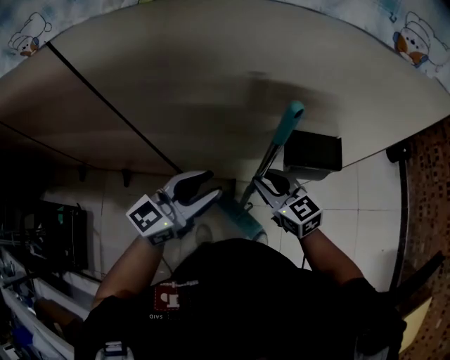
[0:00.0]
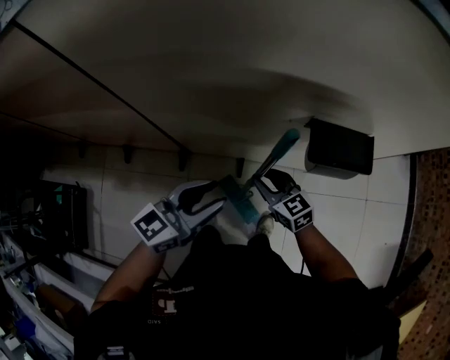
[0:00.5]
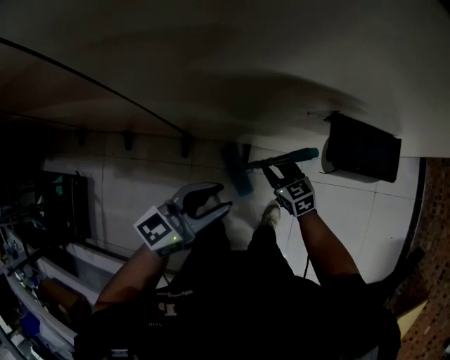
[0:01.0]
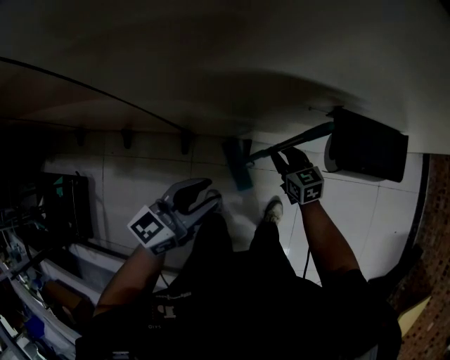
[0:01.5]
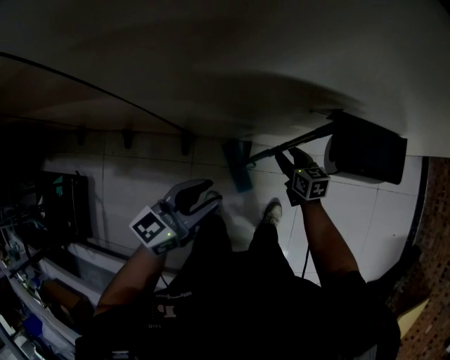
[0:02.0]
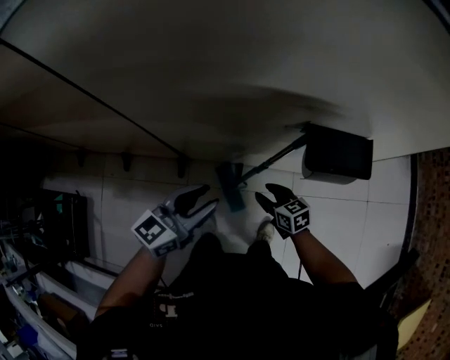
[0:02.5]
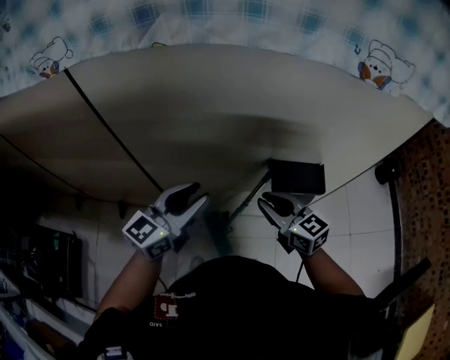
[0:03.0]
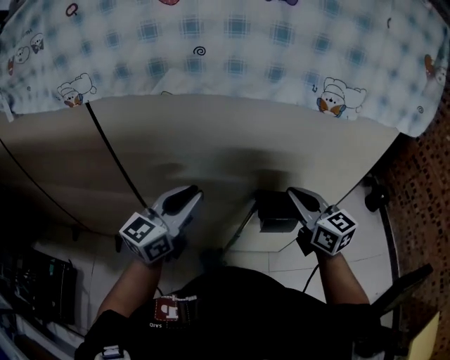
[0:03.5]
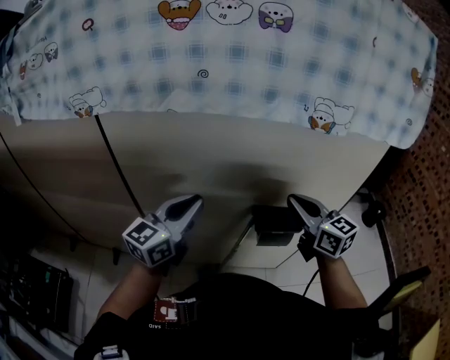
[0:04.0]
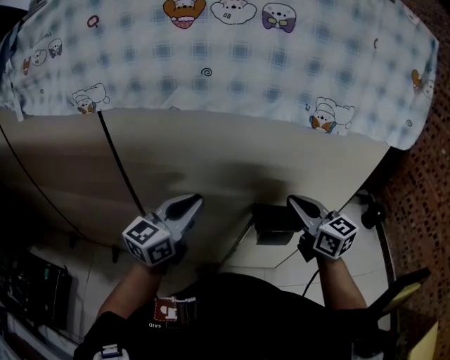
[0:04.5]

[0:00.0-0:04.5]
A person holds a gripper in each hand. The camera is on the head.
0:00.0 to 0:02.0: The left gripper goes about 20 cm downward, while the right gripper goes roughly 30 cm downward, turns by some 30 degrees, and opens.
0:02.0 to 0:04.5: The left gripper travels upward by roughly 35 cm, rotates roughly 30 degrees, and closes up; the right gripper moves upward, approximately 50 cm, angles its fingers upward, by roughly 30 degrees, and closes its fingers.

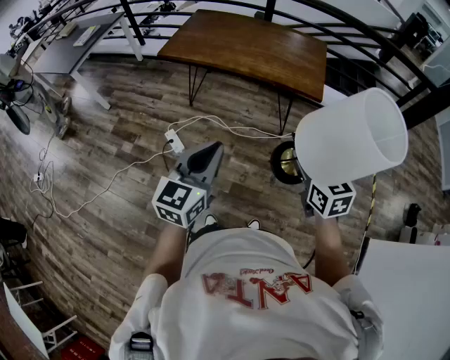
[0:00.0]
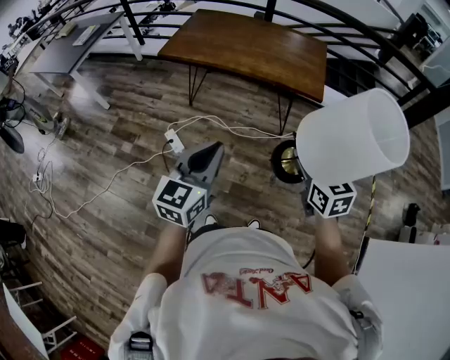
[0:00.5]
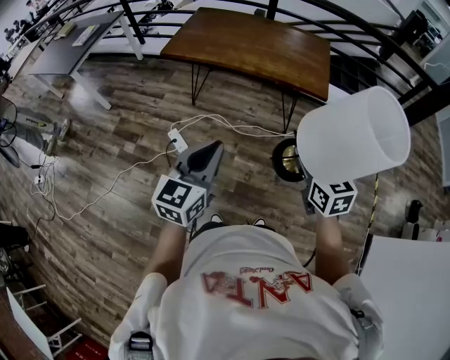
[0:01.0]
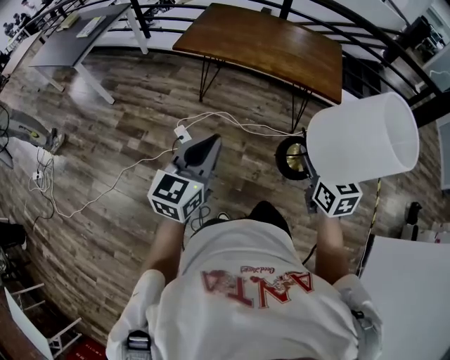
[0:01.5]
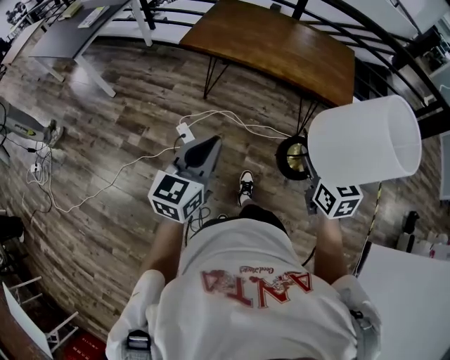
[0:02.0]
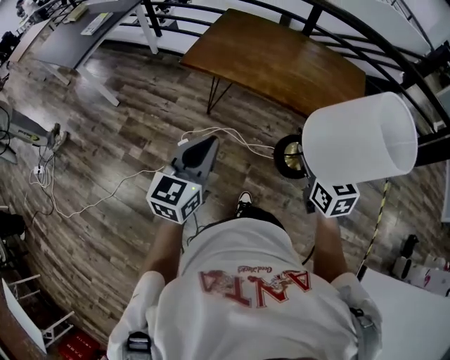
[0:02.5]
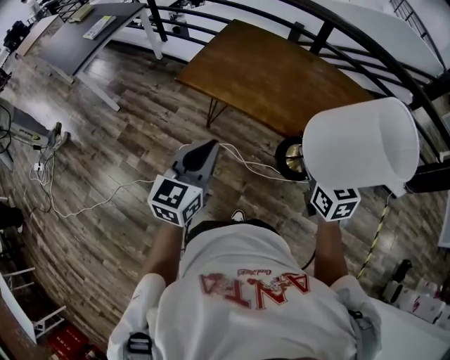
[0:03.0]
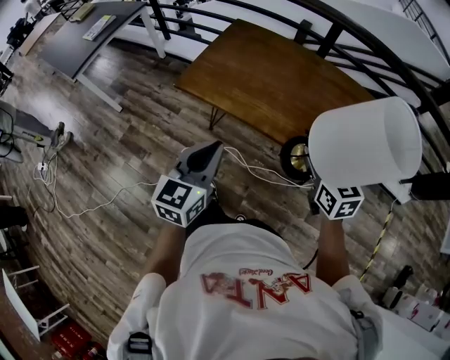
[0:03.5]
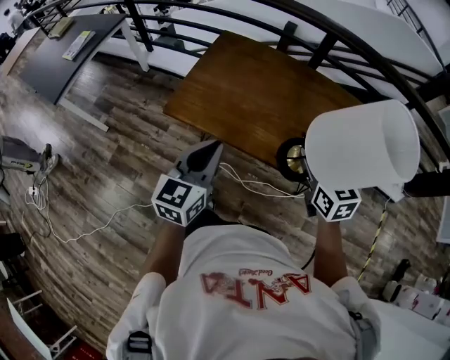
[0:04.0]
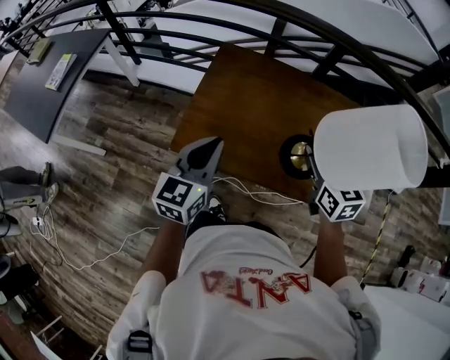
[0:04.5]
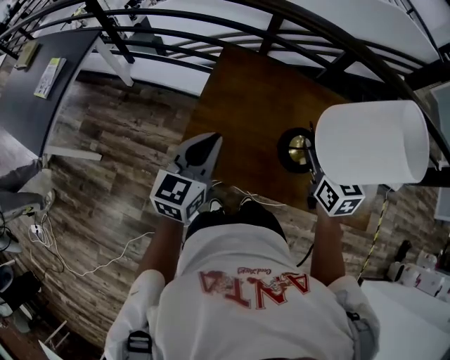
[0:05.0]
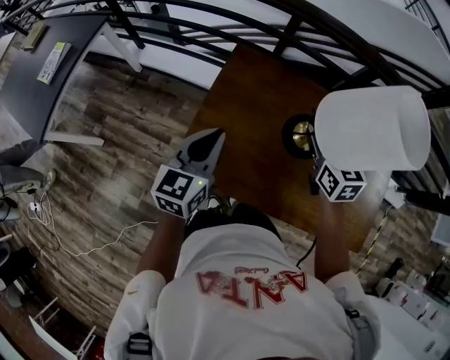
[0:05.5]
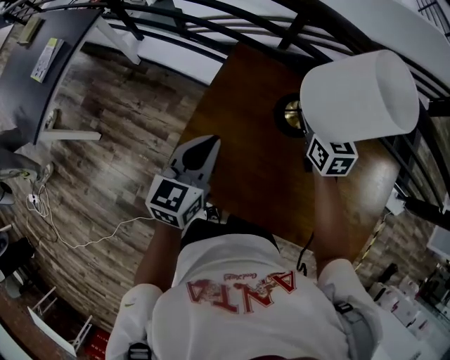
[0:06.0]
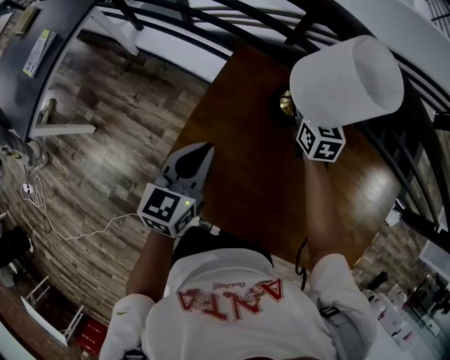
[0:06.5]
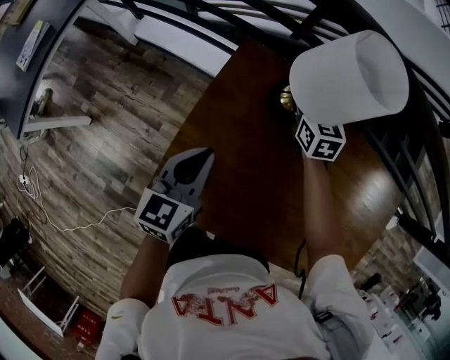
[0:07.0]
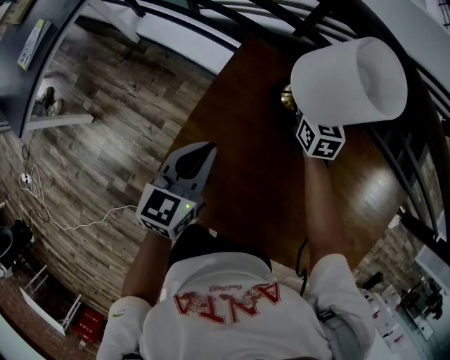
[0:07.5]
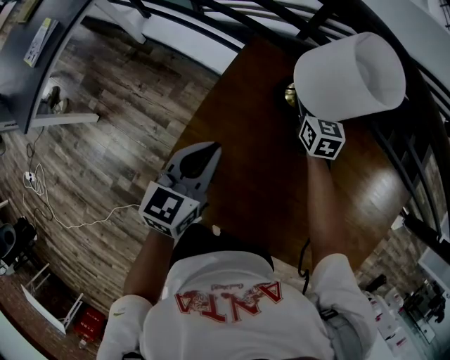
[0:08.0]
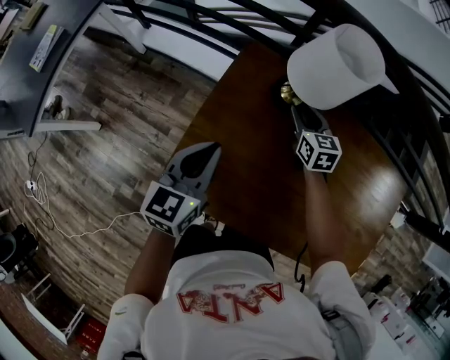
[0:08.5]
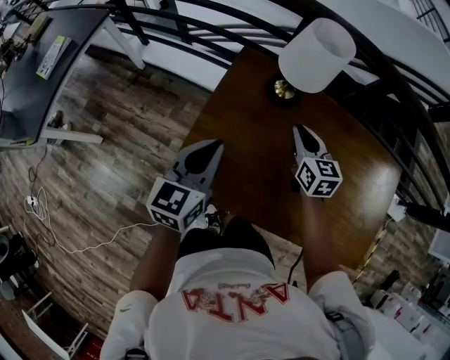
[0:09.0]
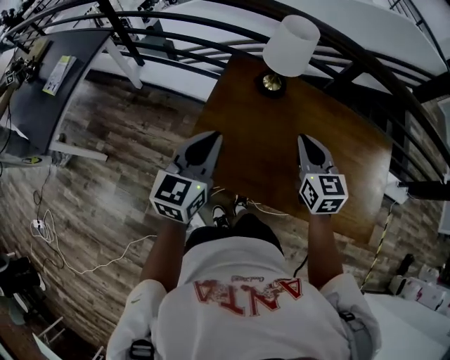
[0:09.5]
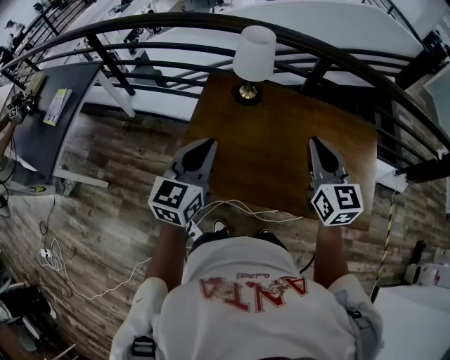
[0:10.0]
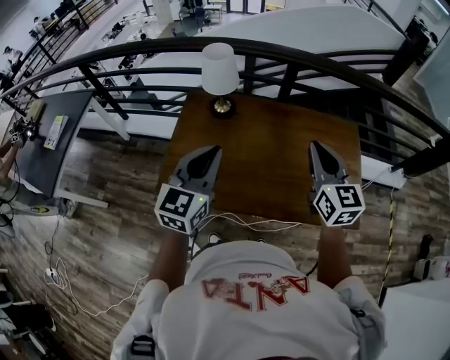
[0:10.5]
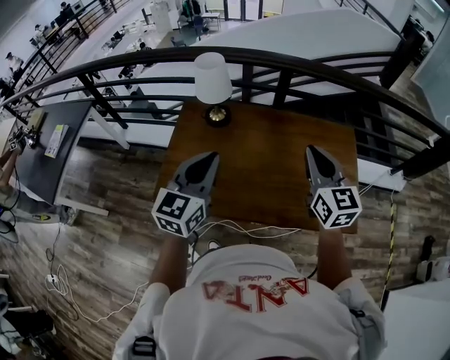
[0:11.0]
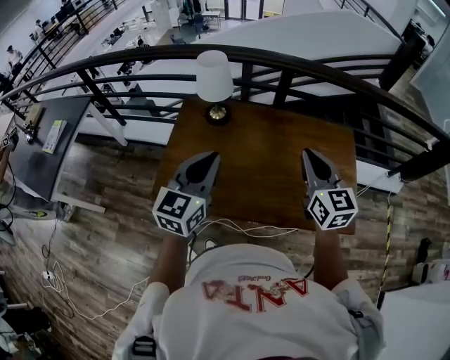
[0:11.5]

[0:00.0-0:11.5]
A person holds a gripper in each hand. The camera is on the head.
0:00.0 to 0:02.0: Both grippers move to the left and forward, about 15 cm.
0:02.0 to 0:04.0: Both grippers are carried forward, approximately 40 cm.
0:04.0 to 0:06.0: Both grippers travel together forward, about 40 cm.
0:06.0 to 0:07.5: The left gripper shifts about 10 cm downward; the right gripper is displaced downward and forward by approximately 15 cm.
0:07.5 to 0:09.5: The right gripper goes approximately 35 cm backward and upward. The left gripper travels backward and upward by about 20 cm.
0:09.5 to 0:11.5: The two grippers go roughly 25 cm to the right and upward.

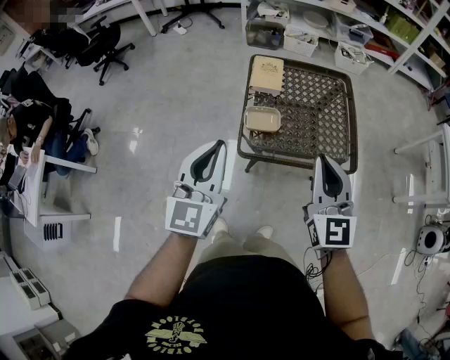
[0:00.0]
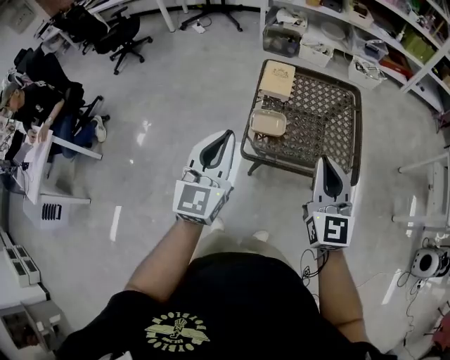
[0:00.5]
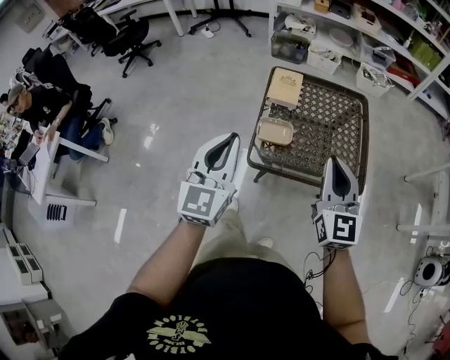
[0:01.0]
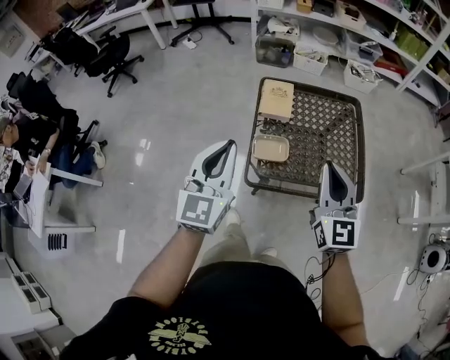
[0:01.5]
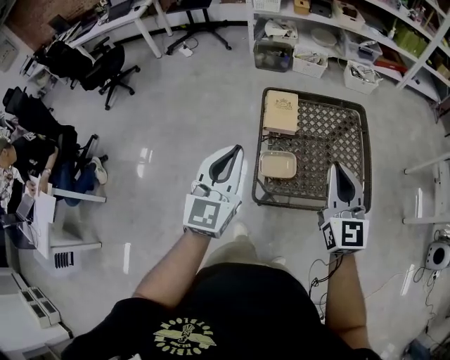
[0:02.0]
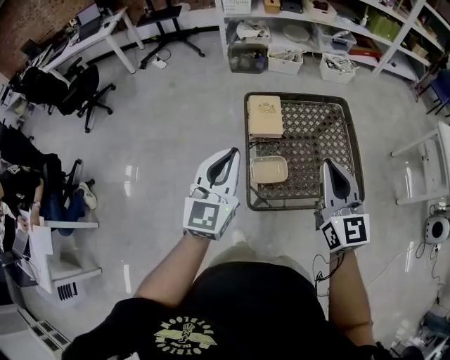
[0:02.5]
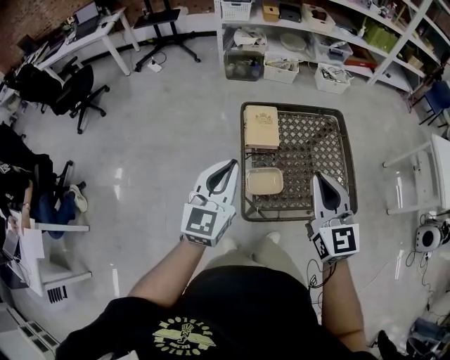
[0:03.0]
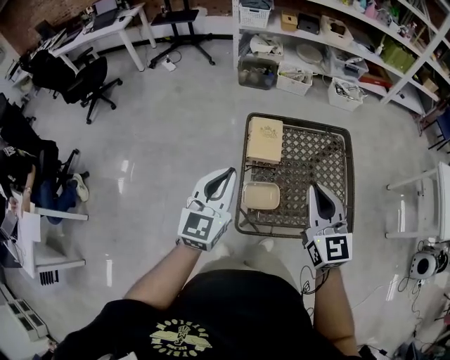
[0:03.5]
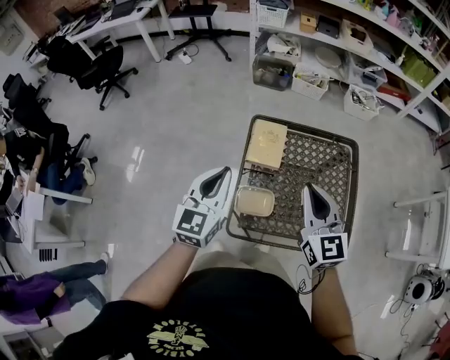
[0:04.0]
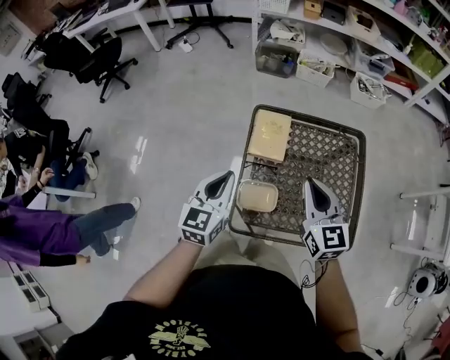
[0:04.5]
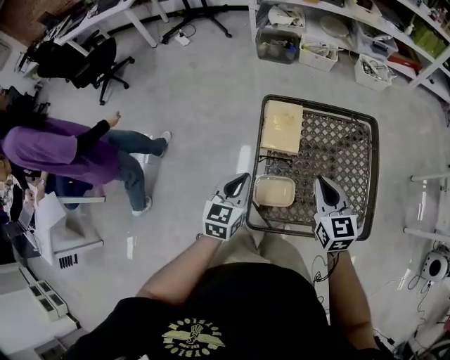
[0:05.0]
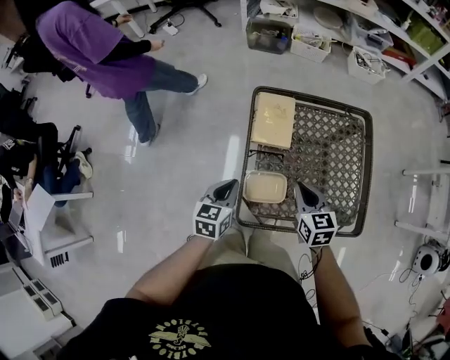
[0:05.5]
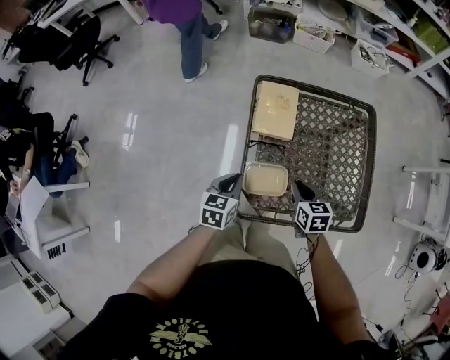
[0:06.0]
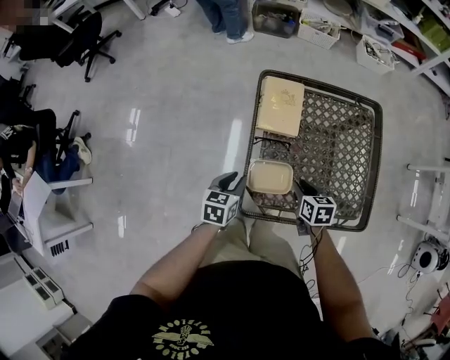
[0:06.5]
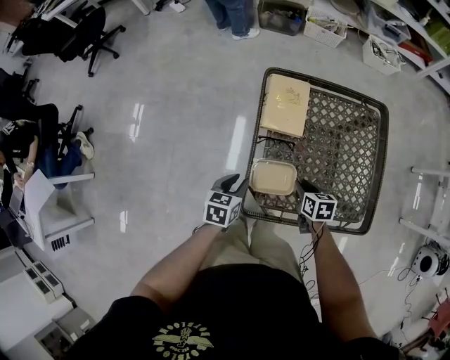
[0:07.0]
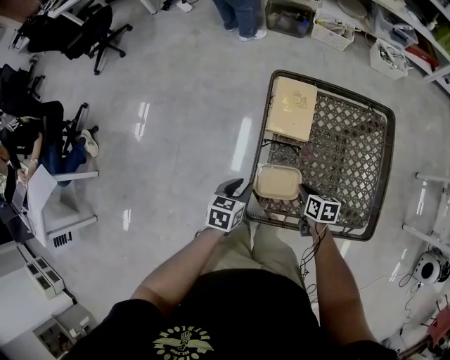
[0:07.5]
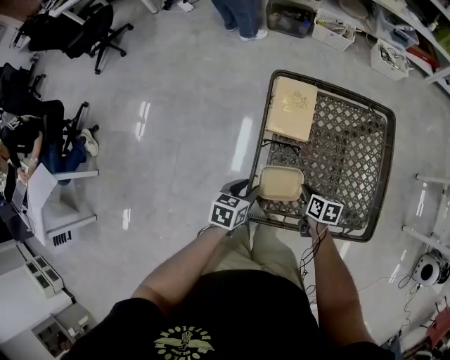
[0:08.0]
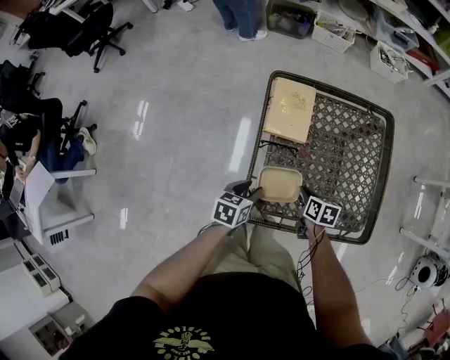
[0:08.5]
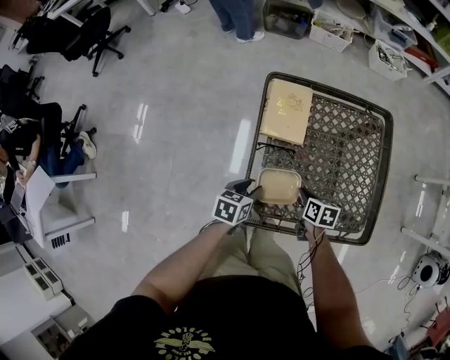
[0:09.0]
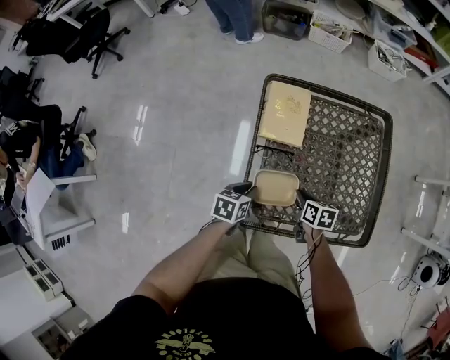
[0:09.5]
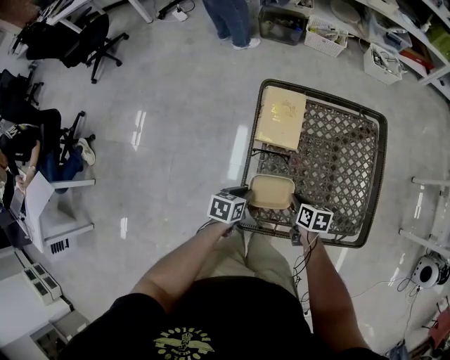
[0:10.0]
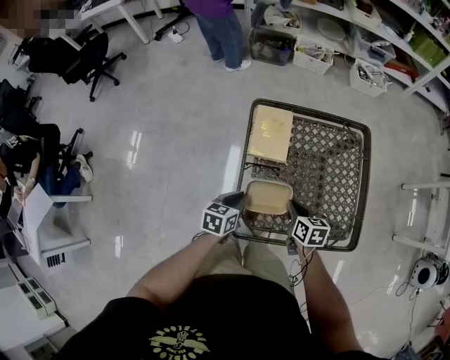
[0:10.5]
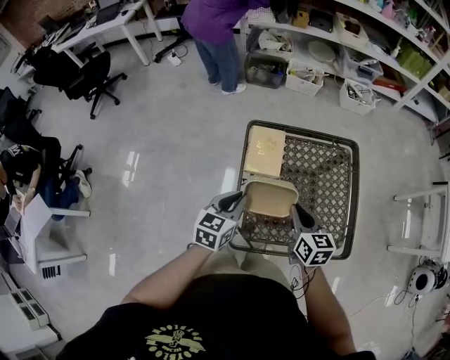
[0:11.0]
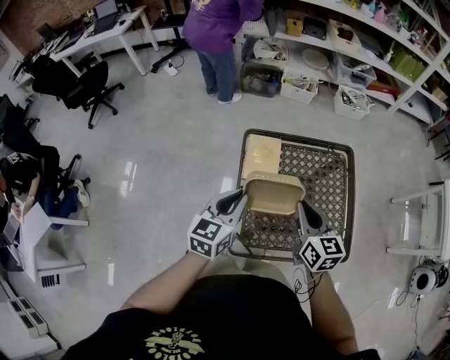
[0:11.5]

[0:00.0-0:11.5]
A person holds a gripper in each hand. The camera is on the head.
0:00.0 to 0:02.0: The grippers both shift forward by roughly 15 cm.
0:02.0 to 0:04.0: The left gripper is displaced forward and downward by approximately 15 cm, while the right gripper travels forward by about 15 cm.
0:04.0 to 0:06.0: The grippers both shift downward by about 30 cm. The left gripper points its fingers about 30 degrees further downward. Meanwhile the right gripper points its fingers about 40 degrees further downward.
0:06.0 to 0:07.5: The left gripper shifts by approximately 5 cm, and opens up, while the right gripper moves downward, some 10 cm.
0:07.5 to 0:09.5: The left gripper moves some 5 cm.
0:09.5 to 0:11.5: The grippers both shift upward by some 30 cm. The right gripper angles its fingers upward, by approximately 30 degrees, while the left gripper tips its fingers upward by approximately 30 degrees.
